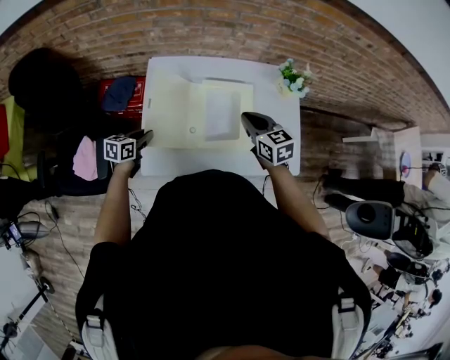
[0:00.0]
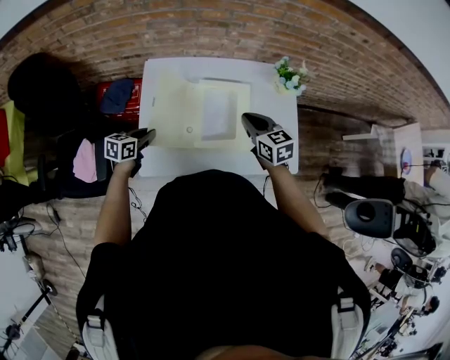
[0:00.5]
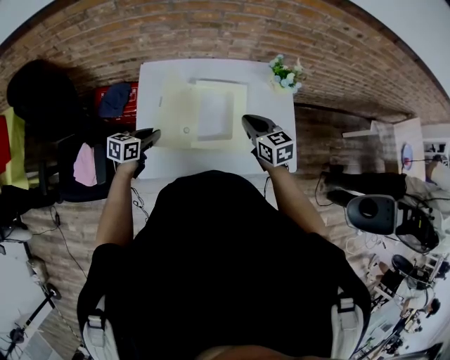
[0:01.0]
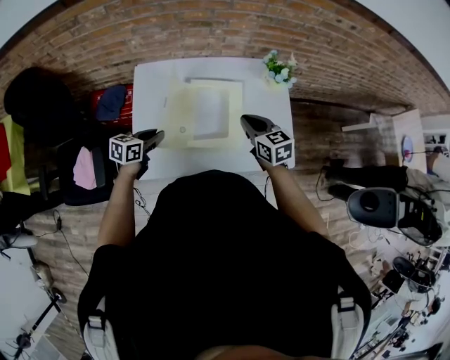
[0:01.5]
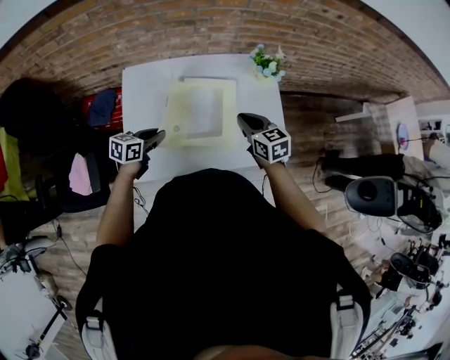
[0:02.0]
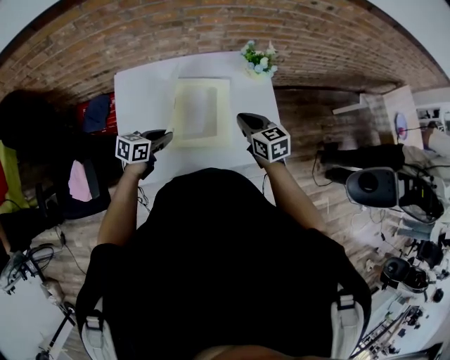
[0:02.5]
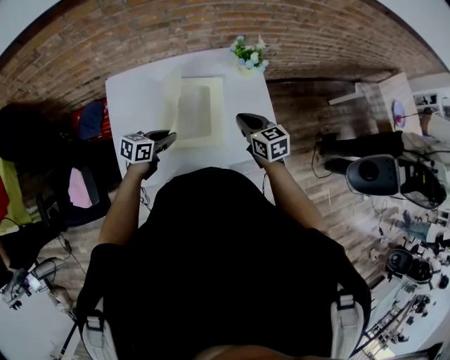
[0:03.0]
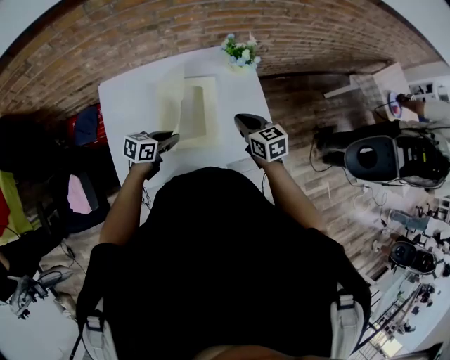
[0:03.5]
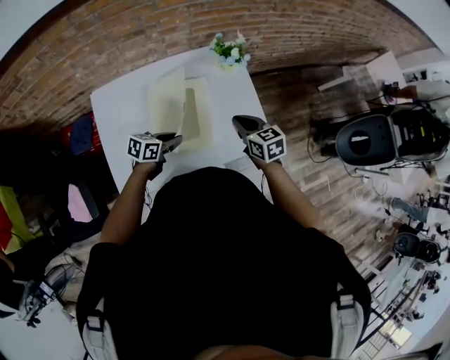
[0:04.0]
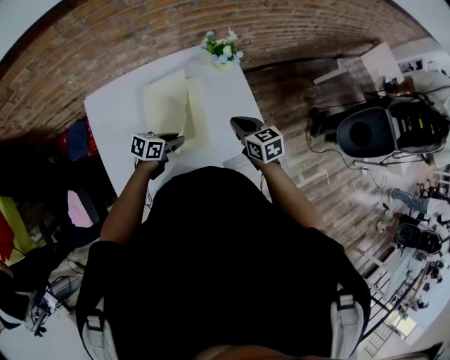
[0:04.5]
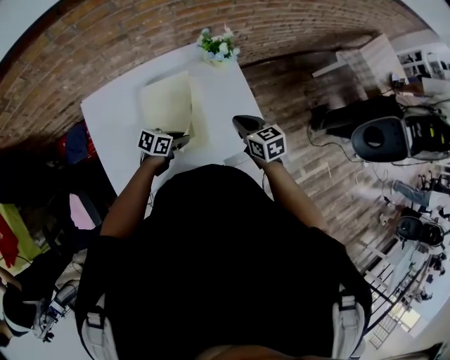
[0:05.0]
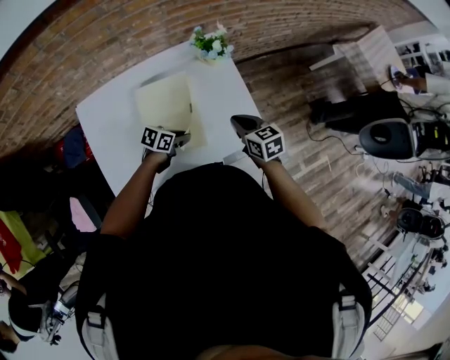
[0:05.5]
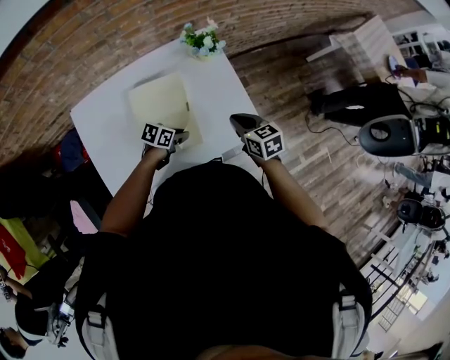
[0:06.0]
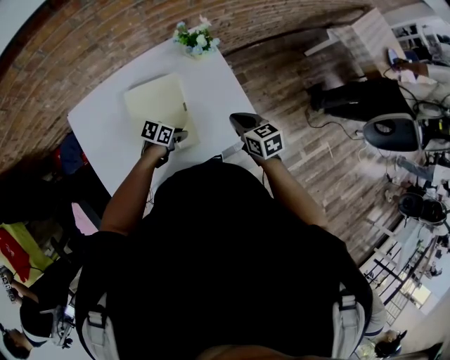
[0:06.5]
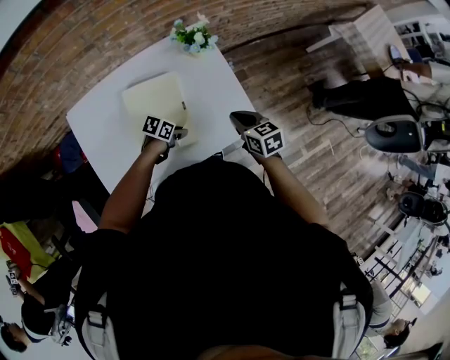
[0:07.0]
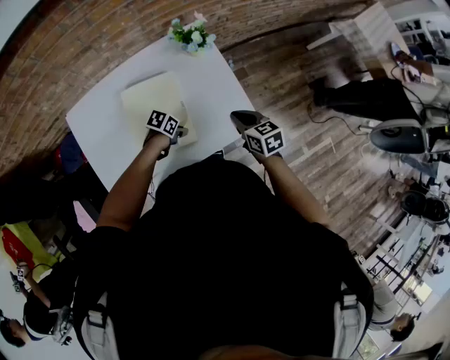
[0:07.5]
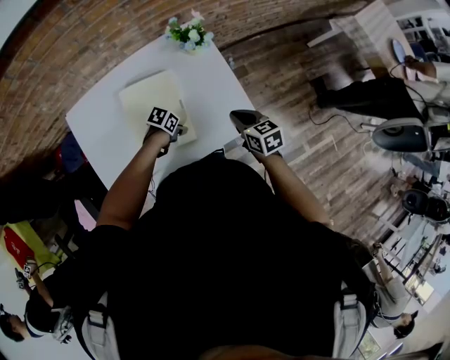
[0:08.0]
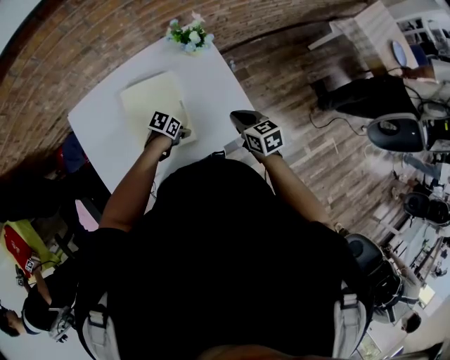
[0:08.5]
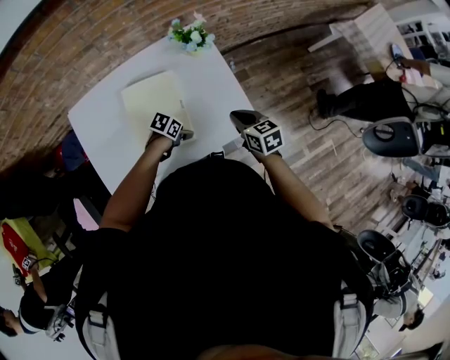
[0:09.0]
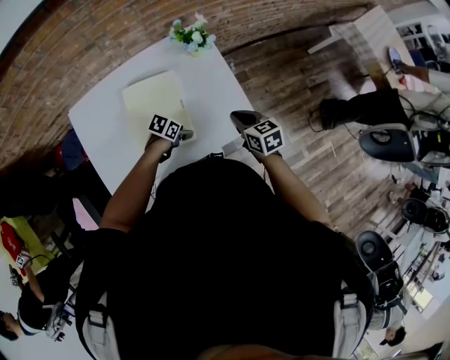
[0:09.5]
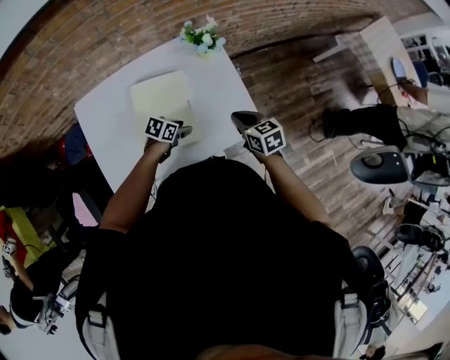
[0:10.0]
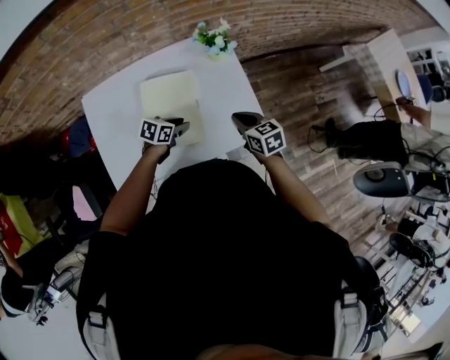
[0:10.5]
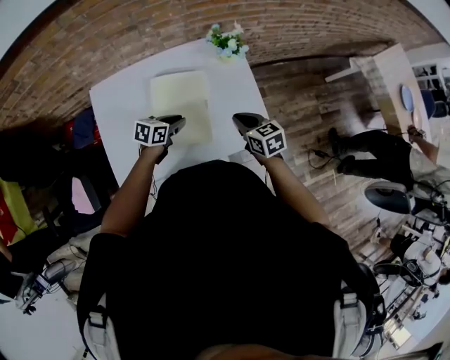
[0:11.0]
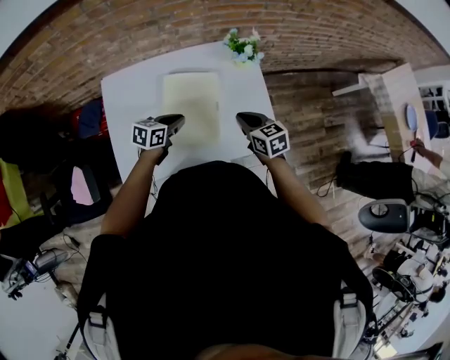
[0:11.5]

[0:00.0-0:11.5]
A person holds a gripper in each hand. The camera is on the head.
0:00.0 to 0:02.0: The right gripper heads to the right, covering about 10 cm, while the left gripper travels to the right by some 15 cm.
0:02.0 to 0:04.0: The right gripper shifts about 10 cm to the right. Meanwhile the left gripper shifts roughly 15 cm to the right.
0:04.0 to 0:06.0: The left gripper moves downward and to the right, approximately 10 cm. Meanwhile the right gripper travels to the right by some 5 cm.
0:06.0 to 0:07.5: The grippers make only small movements.
0:07.5 to 0:09.5: The left gripper opens up.
0:09.5 to 0:11.5: The left gripper shifts about 15 cm upward, turns by roughly 40 degrees, and closes its fingers. The right gripper changes place by some 10 cm.

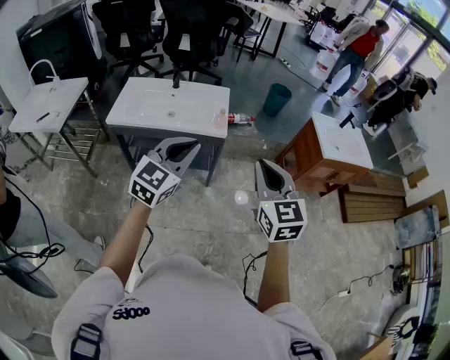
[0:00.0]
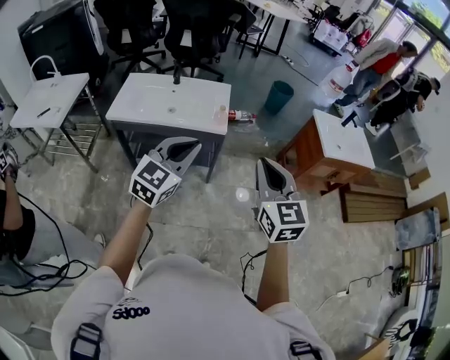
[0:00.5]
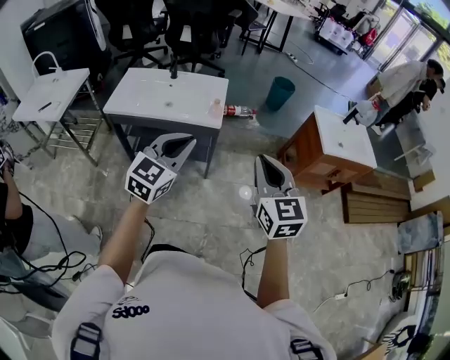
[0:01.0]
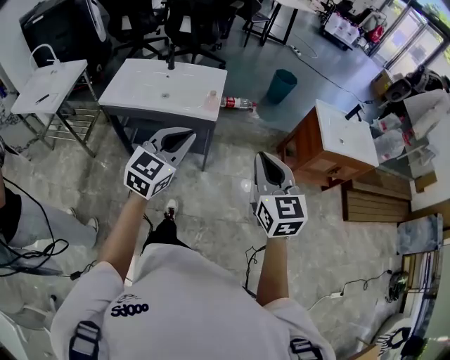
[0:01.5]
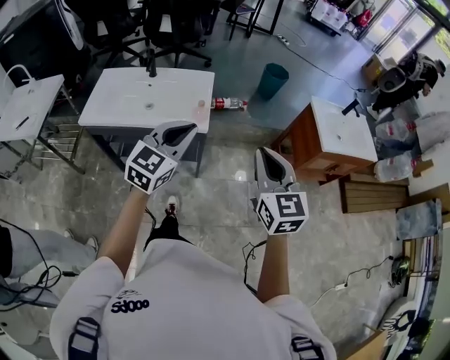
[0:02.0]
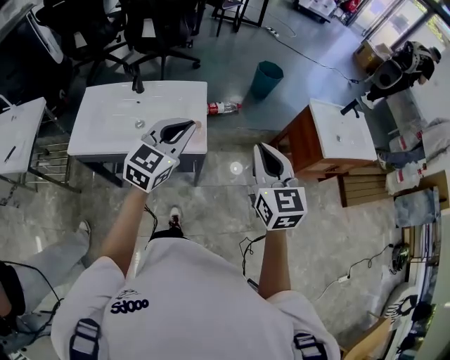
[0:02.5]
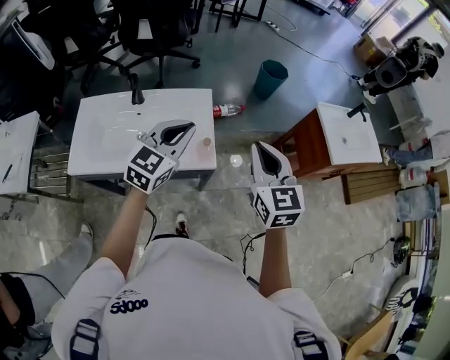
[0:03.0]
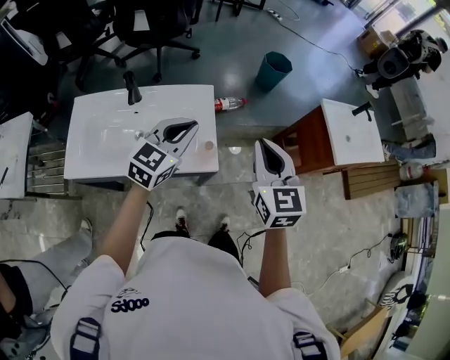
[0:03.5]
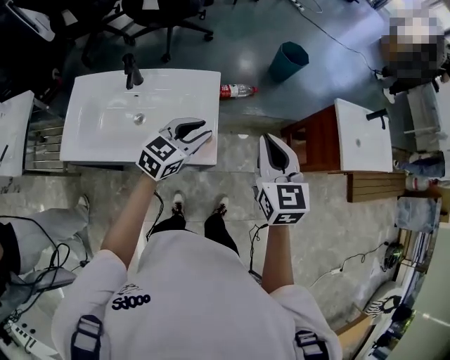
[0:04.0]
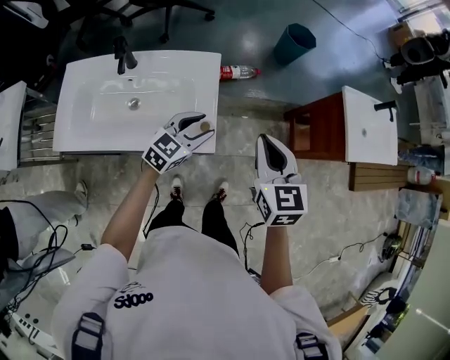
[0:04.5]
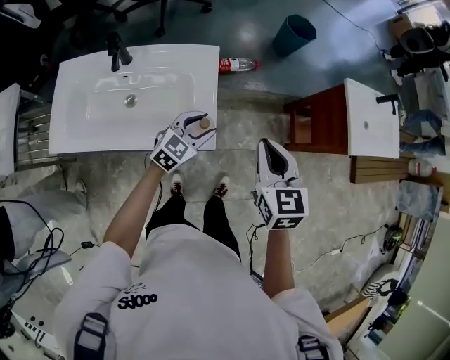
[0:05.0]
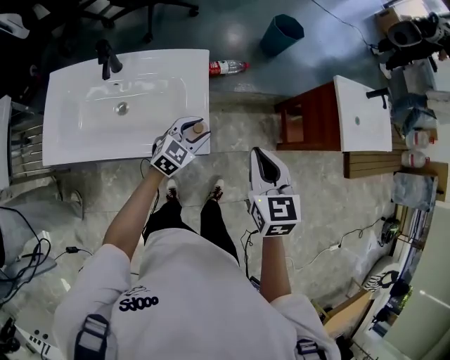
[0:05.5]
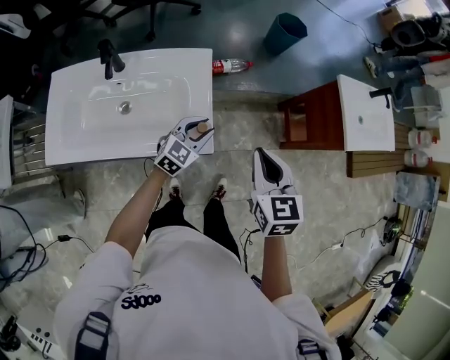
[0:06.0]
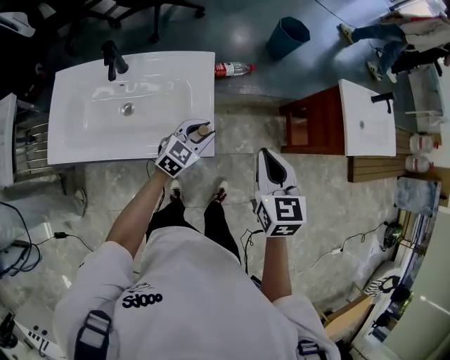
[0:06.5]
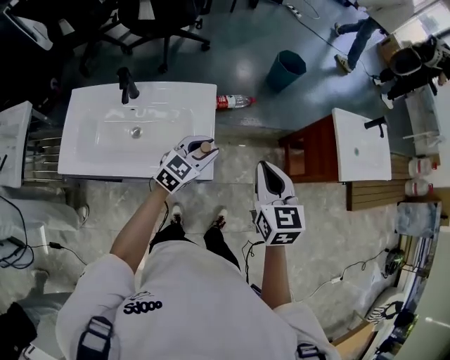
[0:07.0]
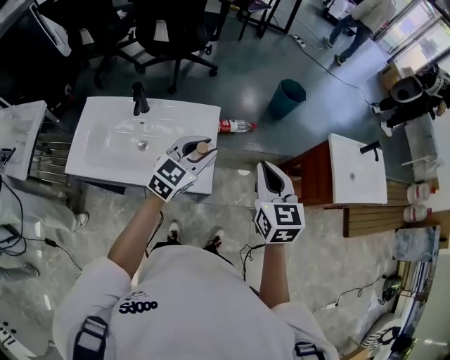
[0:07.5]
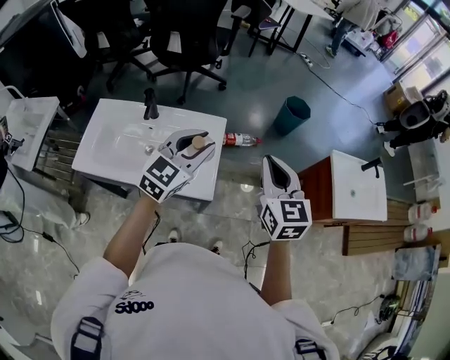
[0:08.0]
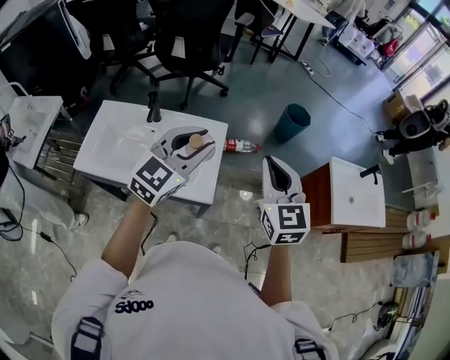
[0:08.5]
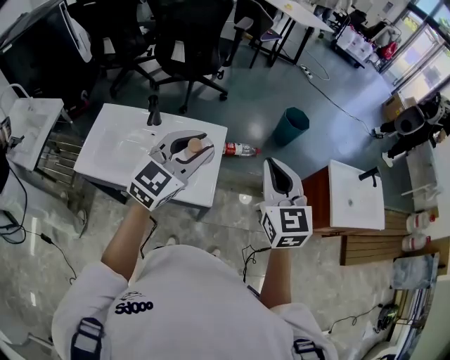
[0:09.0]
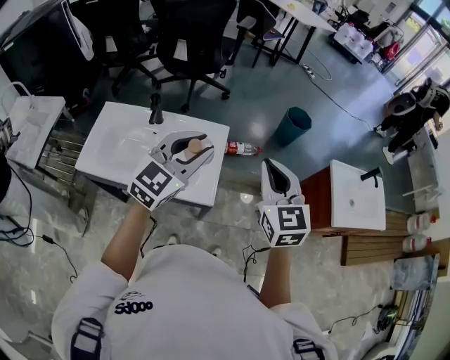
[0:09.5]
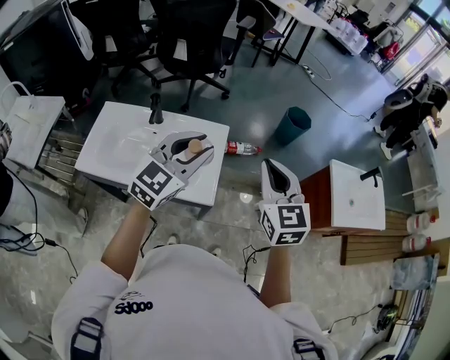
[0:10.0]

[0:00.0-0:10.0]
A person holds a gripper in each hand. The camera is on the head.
0:00.0 to 0:02.0: The grippers both shift forward and to the right by about 15 cm.
0:02.0 to 0:04.0: The left gripper shifts about 30 cm forward and downward, rotates some 20 degrees, and opens its fingers. Meanwhile the right gripper goes approximately 25 cm forward.
0:04.0 to 0:06.0: The left gripper moves downward, roughly 15 cm. The right gripper moves downward, approximately 10 cm.
0:06.0 to 0:08.0: The right gripper heads upward and forward, covering roughly 15 cm, and changes its angle by about 20 degrees, while the left gripper is displaced upward by some 25 cm, and turns by approximately 20 degrees.
0:08.0 to 0:10.0: The left gripper changes place by roughly 5 cm.

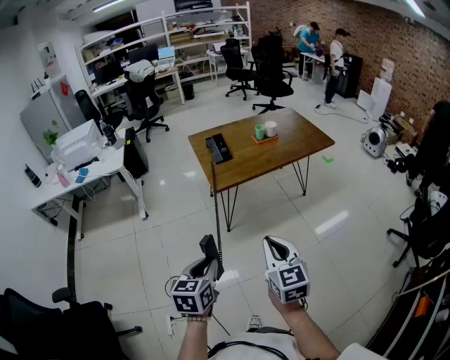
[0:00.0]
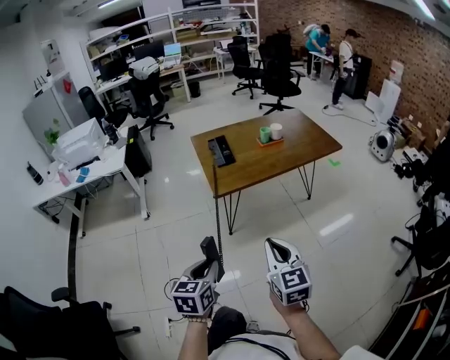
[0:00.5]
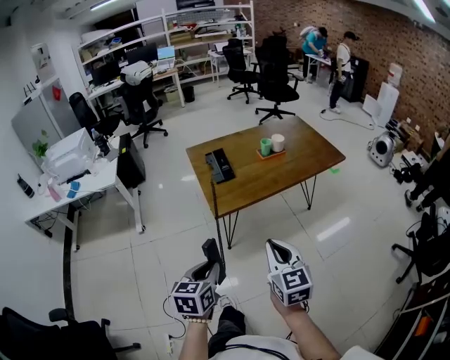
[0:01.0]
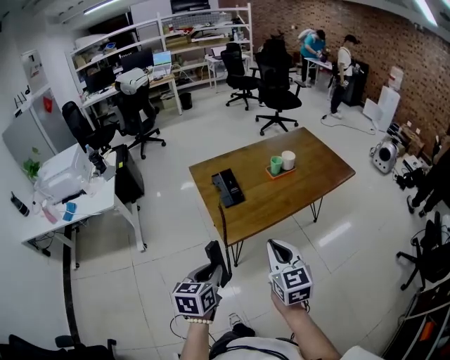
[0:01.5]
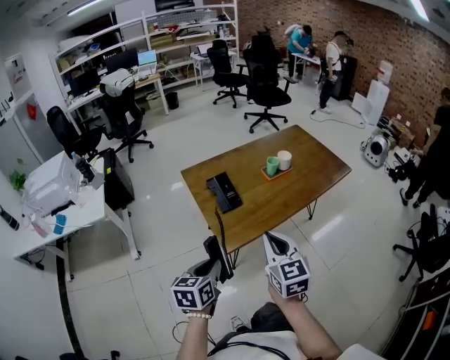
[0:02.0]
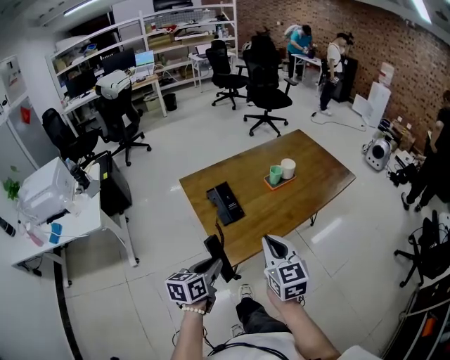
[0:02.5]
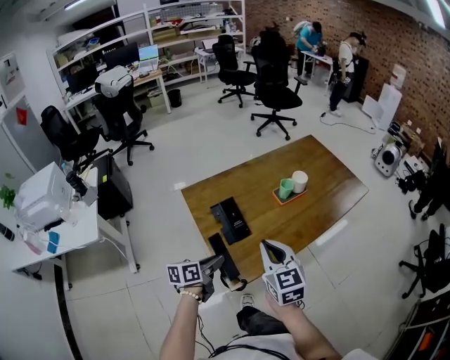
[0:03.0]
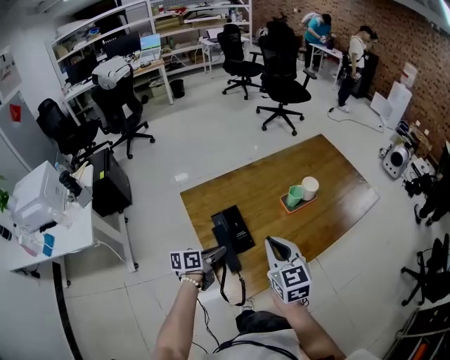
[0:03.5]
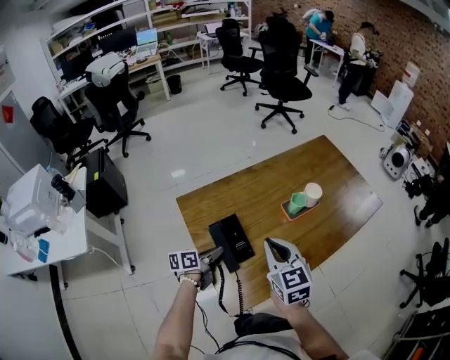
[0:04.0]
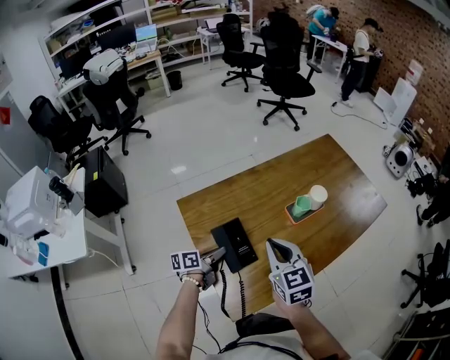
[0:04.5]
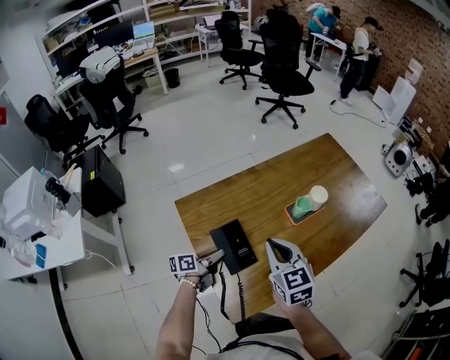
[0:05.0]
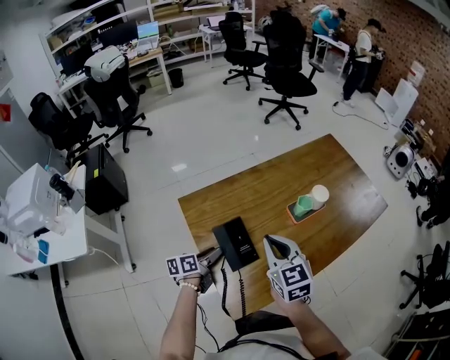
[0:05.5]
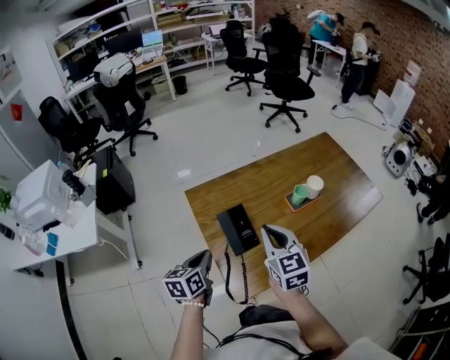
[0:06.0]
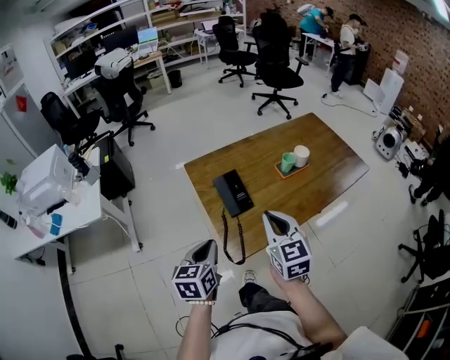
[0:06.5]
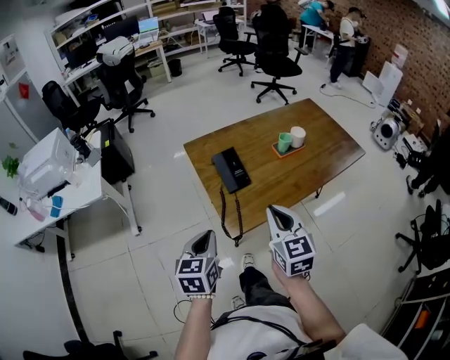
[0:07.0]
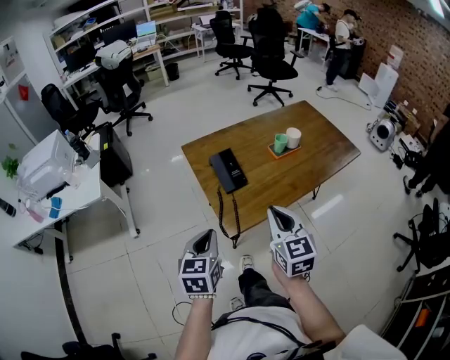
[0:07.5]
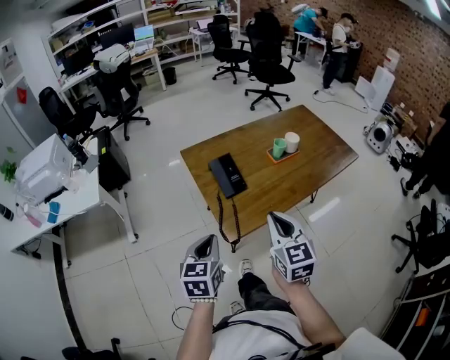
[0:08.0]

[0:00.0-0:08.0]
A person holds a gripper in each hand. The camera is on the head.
0:00.0 to 0:02.0: The grippers both shift forward by about 35 cm.
0:02.0 to 0:04.0: The right gripper is displaced forward by about 25 cm; the left gripper shifts some 40 cm forward and downward, and changes its angle by some 40 degrees.
0:04.0 to 0:06.0: The left gripper travels upward and backward by about 15 cm, turns by roughly 30 degrees, and opens and closes again.
0:06.0 to 0:08.0: The two grippers go about 20 cm backward. The left gripper rotates roughly 20 degrees.
